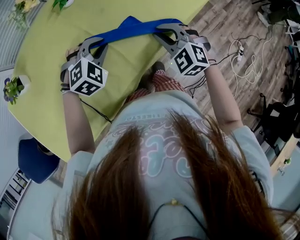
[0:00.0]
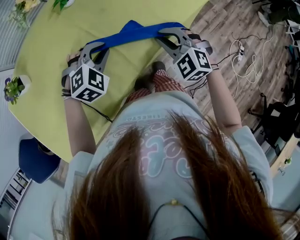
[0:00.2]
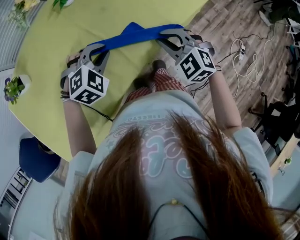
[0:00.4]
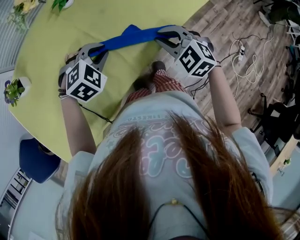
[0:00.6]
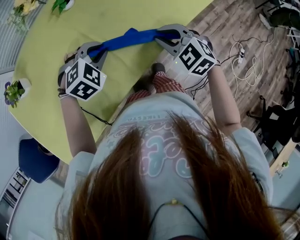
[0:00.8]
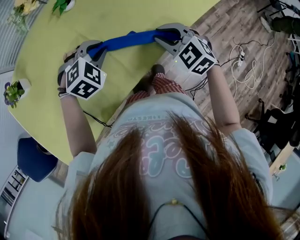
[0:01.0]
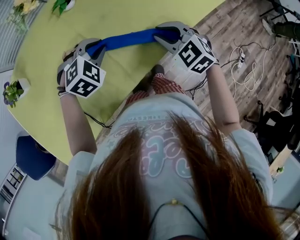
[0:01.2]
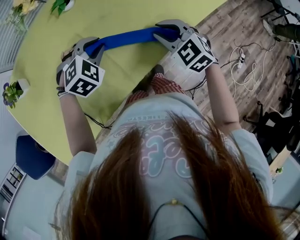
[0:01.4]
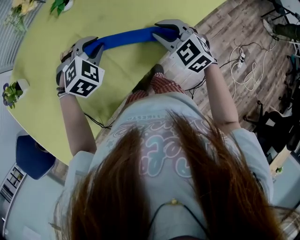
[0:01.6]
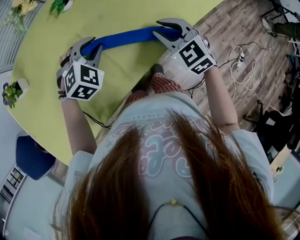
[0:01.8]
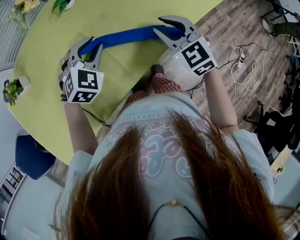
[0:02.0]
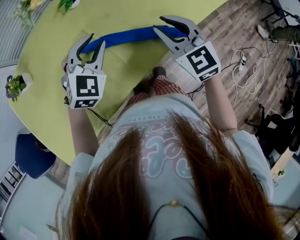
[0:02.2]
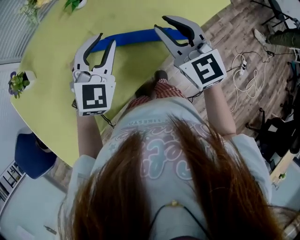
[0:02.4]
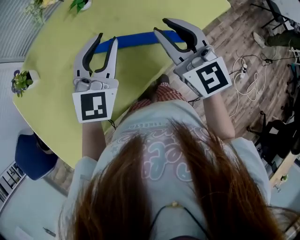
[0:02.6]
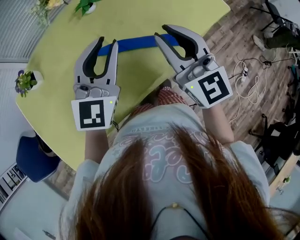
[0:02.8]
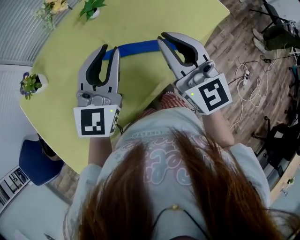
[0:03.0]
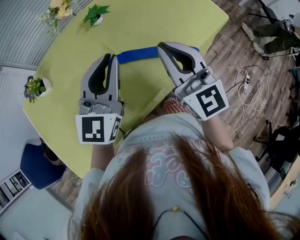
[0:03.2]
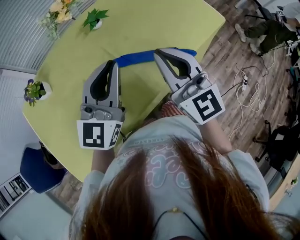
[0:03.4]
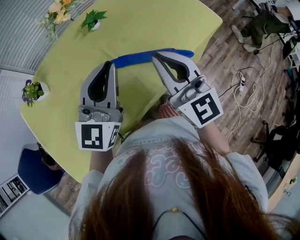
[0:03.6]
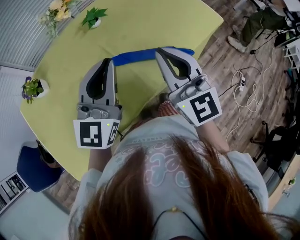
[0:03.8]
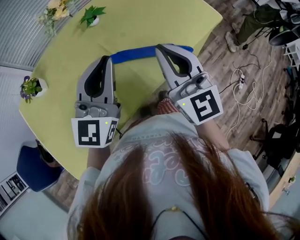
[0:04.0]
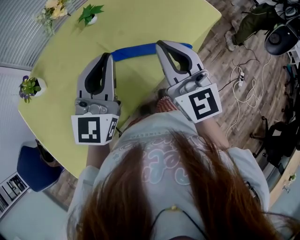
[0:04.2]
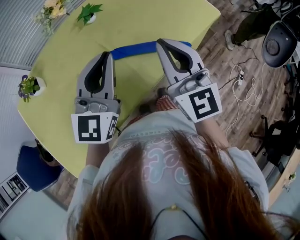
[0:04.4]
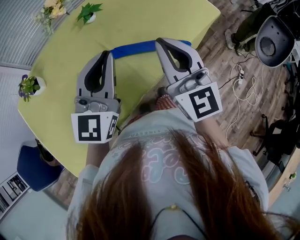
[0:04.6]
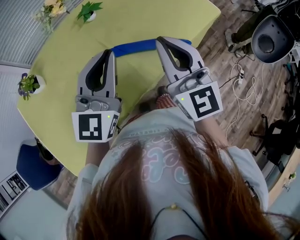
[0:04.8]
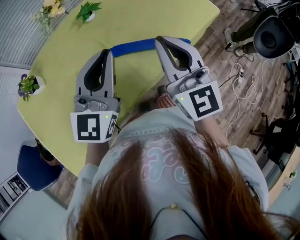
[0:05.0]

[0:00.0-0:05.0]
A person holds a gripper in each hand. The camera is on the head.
0:00.0 to 0:01.6: The right gripper goes some 5 cm forward.
0:01.6 to 0:03.4: The right gripper is displaced upward and to the left by some 25 cm, and angles its fingers upward, by about 40 degrees; the left gripper goes approximately 20 cm upward, and tips its fingers upward by about 60 degrees.
0:03.4 to 0:05.0: The grippers move only a little.

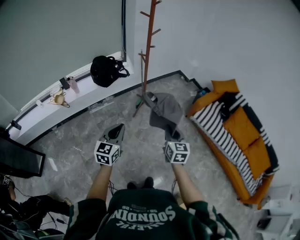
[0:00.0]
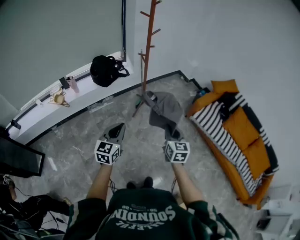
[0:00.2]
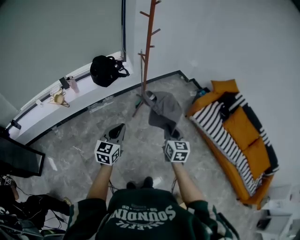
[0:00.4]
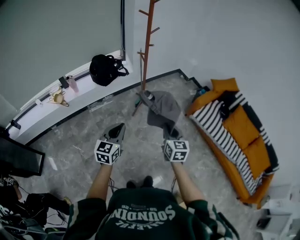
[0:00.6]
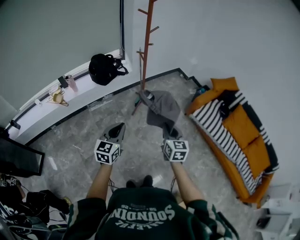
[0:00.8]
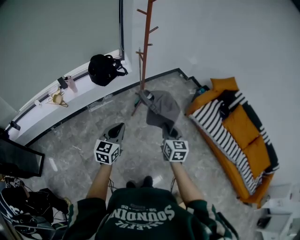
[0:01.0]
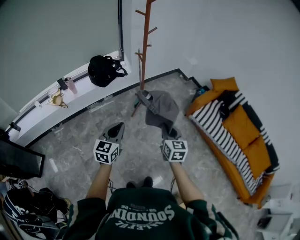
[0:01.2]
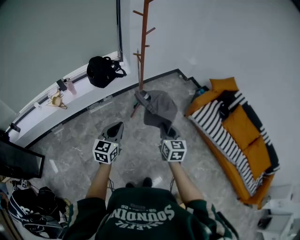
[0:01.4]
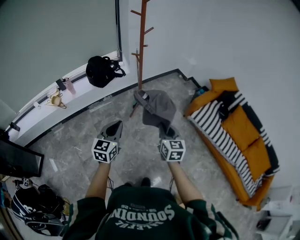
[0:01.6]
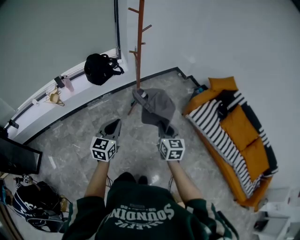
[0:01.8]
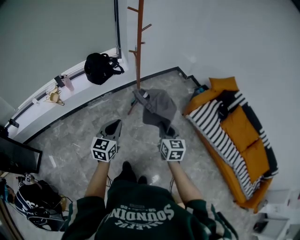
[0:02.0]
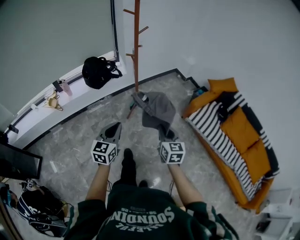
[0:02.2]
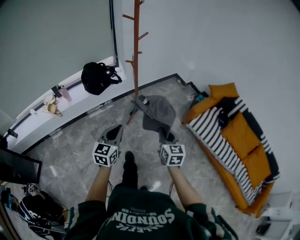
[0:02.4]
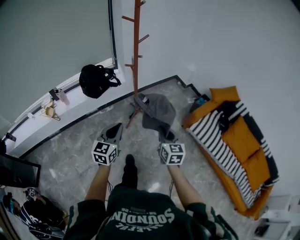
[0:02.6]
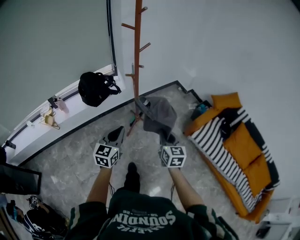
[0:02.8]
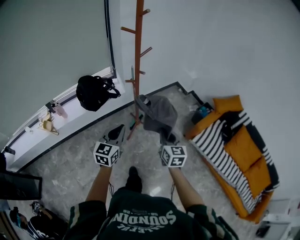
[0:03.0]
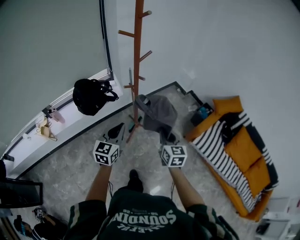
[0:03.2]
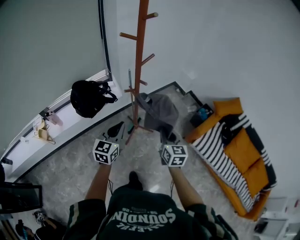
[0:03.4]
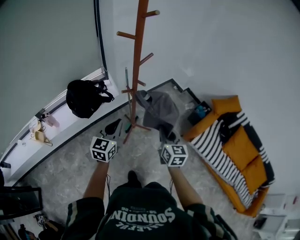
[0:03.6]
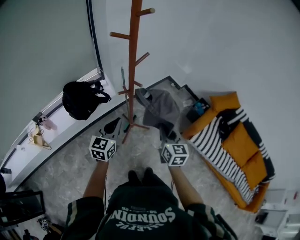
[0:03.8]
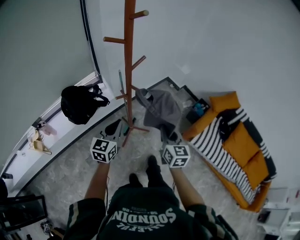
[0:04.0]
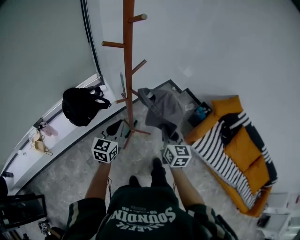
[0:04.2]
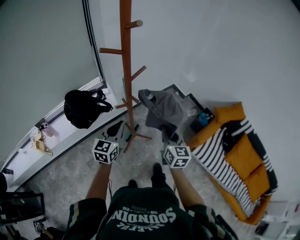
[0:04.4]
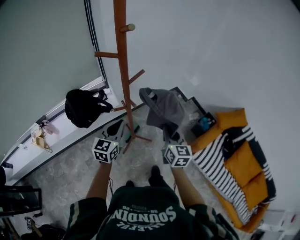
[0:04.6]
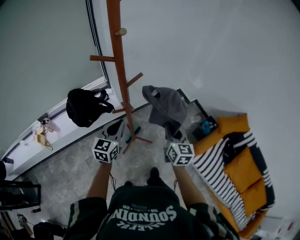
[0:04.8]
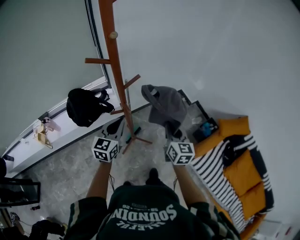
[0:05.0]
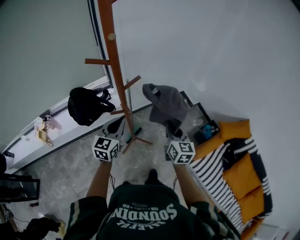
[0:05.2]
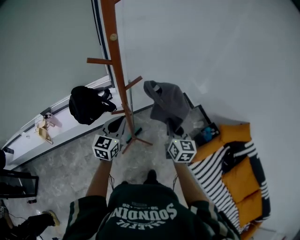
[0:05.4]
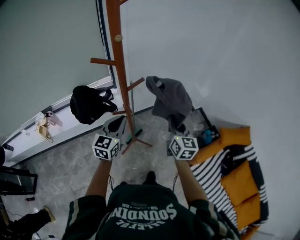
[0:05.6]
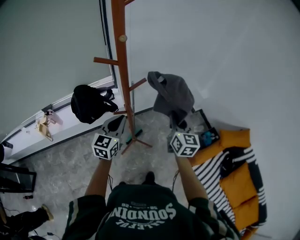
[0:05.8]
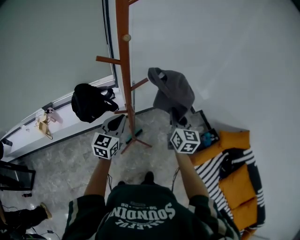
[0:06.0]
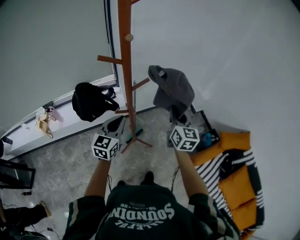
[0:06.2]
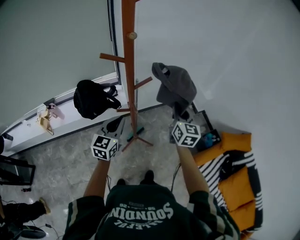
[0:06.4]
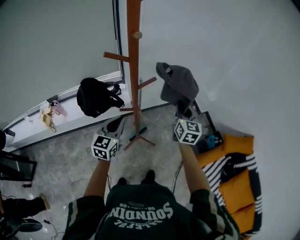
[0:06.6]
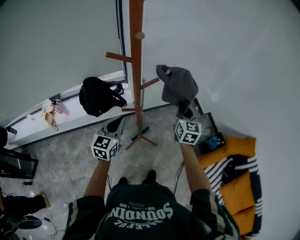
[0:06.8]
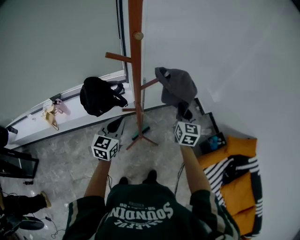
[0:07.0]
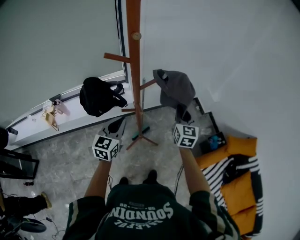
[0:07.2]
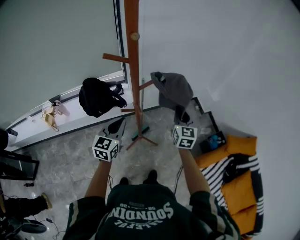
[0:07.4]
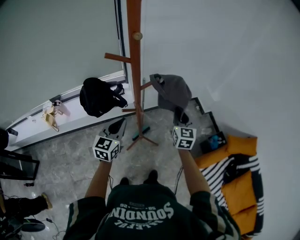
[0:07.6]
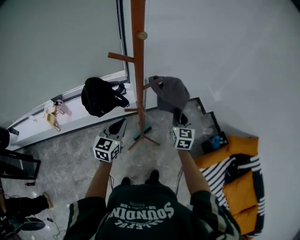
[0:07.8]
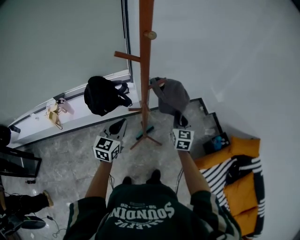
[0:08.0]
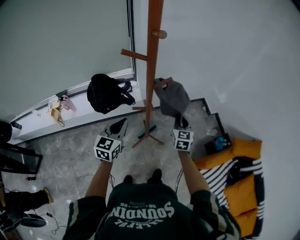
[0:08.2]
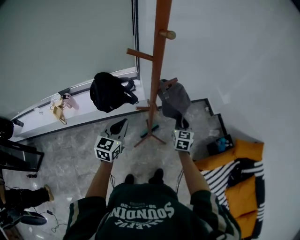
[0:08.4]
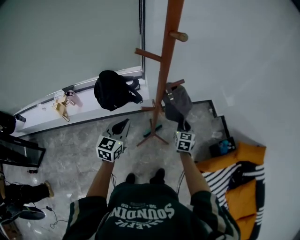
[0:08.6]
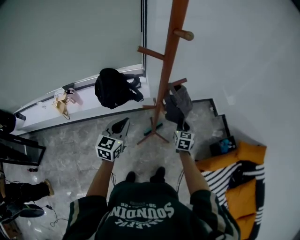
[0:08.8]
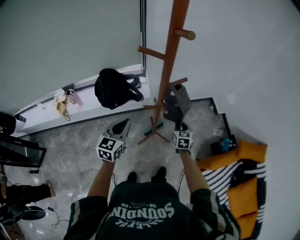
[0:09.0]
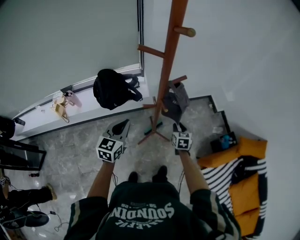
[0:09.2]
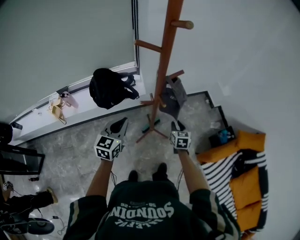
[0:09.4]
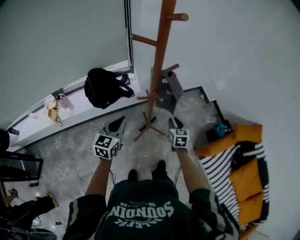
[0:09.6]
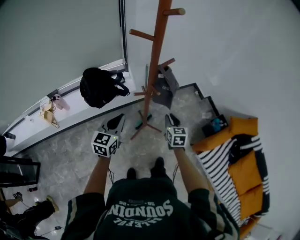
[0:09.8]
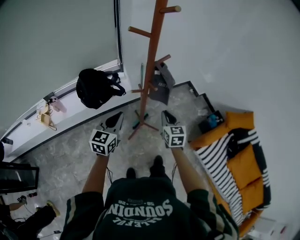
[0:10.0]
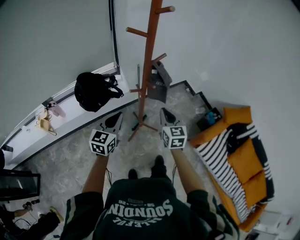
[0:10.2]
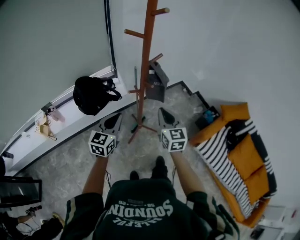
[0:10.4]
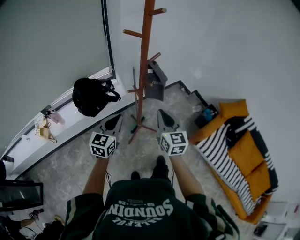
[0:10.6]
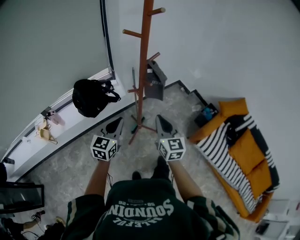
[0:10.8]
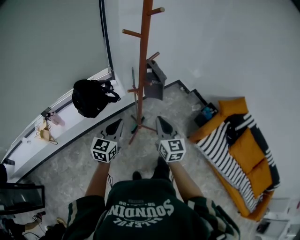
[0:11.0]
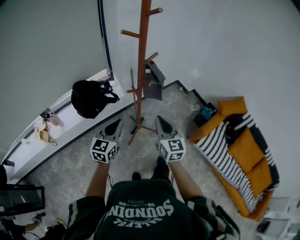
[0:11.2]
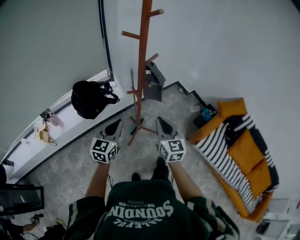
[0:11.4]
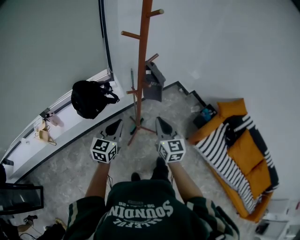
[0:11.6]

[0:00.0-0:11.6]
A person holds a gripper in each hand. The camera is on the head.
0:00.0 to 0:01.4: The grippers make only small movements.
0:01.4 to 0:02.8: Both grippers travel together forward, about 20 cm.
0:02.8 to 0:04.4: The grippers both shift forward by roughly 30 cm.
0:04.4 to 0:05.8: The right gripper heads forward and upward, covering roughly 15 cm. Meanwhile the left gripper shifts roughly 5 cm forward.
0:05.8 to 0:07.2: The right gripper heads forward, covering about 5 cm.
0:07.2 to 0:08.8: The right gripper travels downward by about 15 cm, and turns by about 20 degrees; the left gripper moves to the left, roughly 10 cm.
0:08.8 to 0:10.2: The right gripper travels backward, upward and to the left by about 20 cm. The left gripper moves backward, some 5 cm.
0:10.2 to 0:11.6: The right gripper shifts about 10 cm backward.

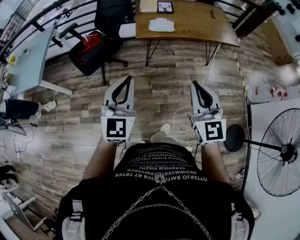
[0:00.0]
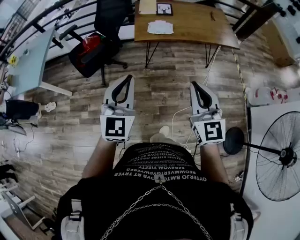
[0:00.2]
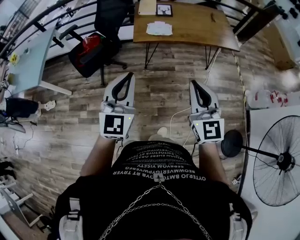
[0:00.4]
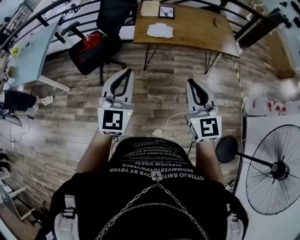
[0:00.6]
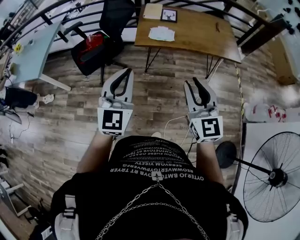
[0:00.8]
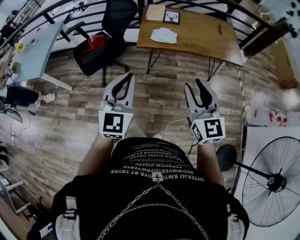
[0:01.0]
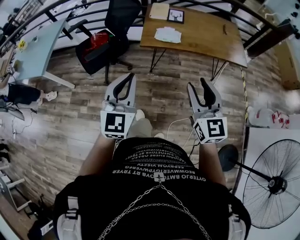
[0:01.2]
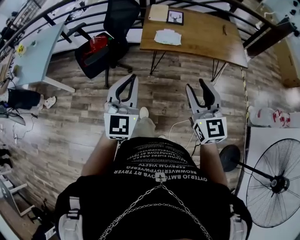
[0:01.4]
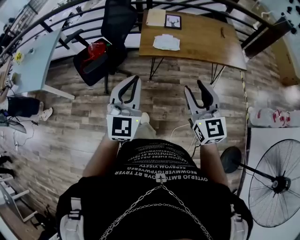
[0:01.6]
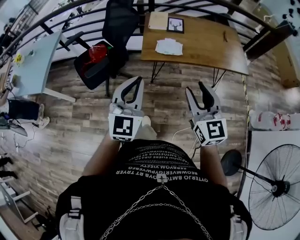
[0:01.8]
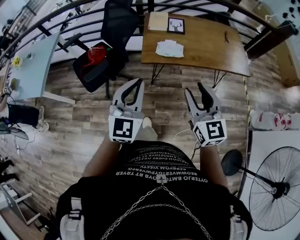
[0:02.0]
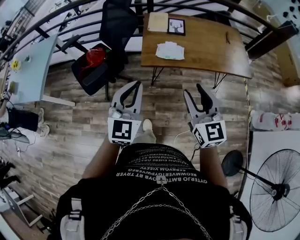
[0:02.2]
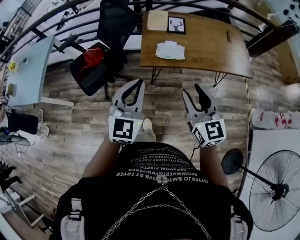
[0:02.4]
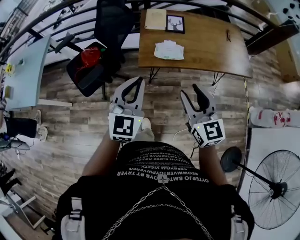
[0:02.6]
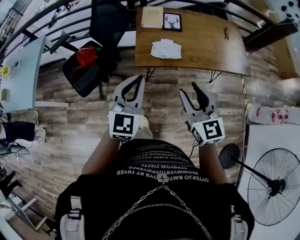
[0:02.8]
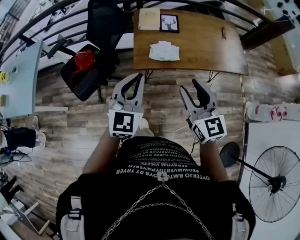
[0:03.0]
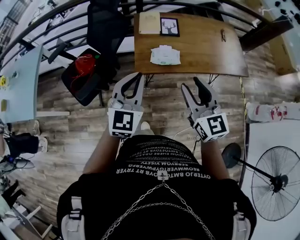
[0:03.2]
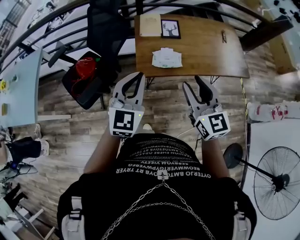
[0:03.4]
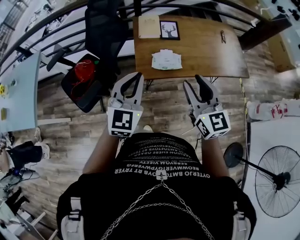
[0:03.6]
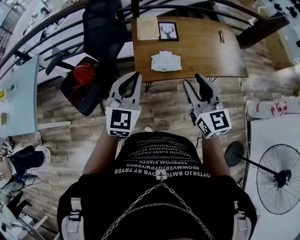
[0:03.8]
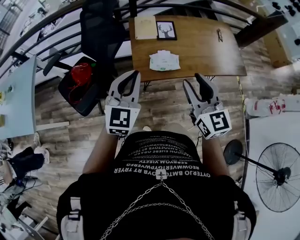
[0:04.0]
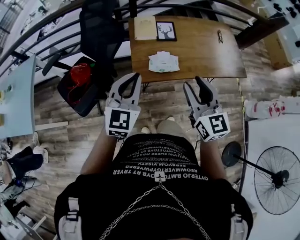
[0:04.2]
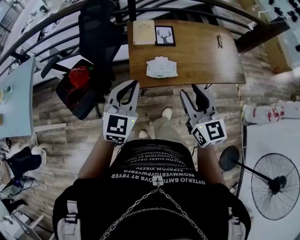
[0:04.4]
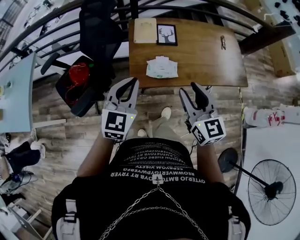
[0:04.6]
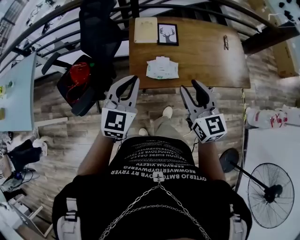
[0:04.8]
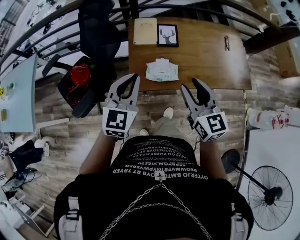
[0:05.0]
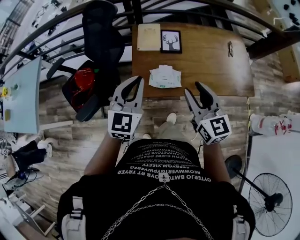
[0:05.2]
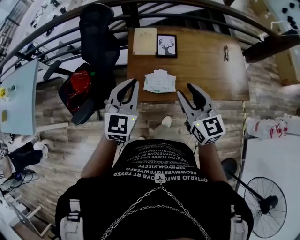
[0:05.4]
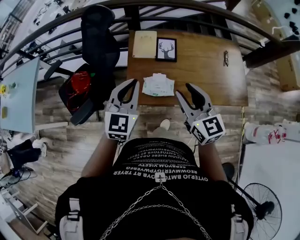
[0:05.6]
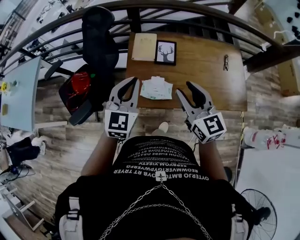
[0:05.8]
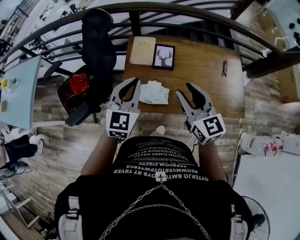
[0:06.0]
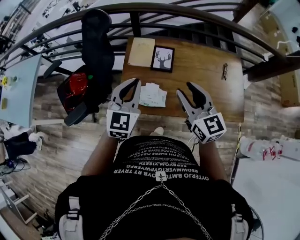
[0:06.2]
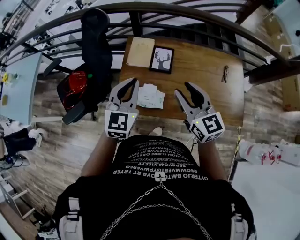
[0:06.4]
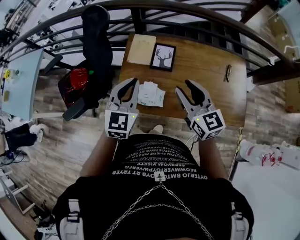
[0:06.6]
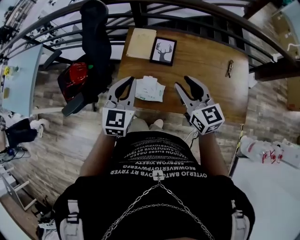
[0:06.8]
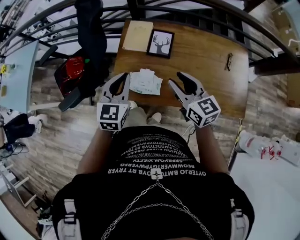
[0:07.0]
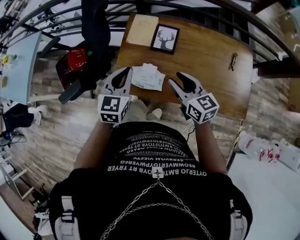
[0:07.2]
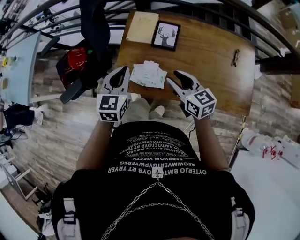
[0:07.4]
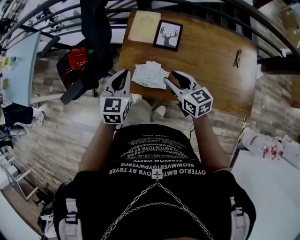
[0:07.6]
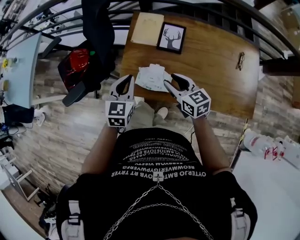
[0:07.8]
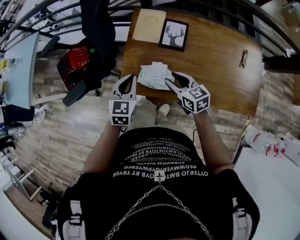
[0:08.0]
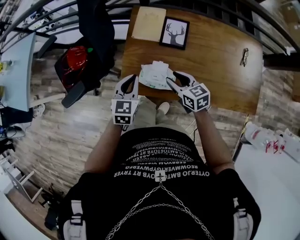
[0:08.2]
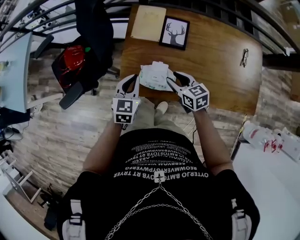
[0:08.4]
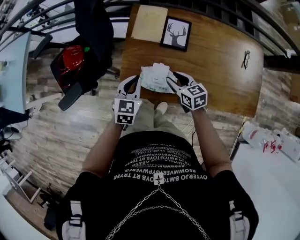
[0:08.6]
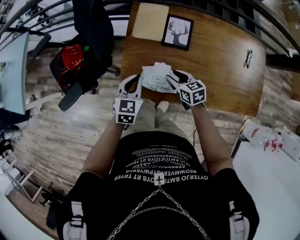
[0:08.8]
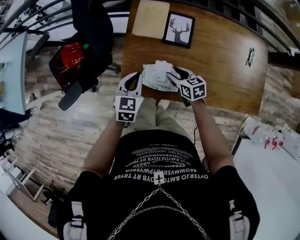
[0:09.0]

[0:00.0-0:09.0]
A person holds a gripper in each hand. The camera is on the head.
0:00.0 to 0:01.6: The right gripper shifts some 15 cm forward, and opens up; the left gripper heads forward and to the right, covering roughly 15 cm.
0:01.6 to 0:03.0: The two grippers go approximately 20 cm forward.
0:03.0 to 0:04.4: Both grippers travel together forward, roughly 10 cm.
0:04.4 to 0:06.0: Both grippers travel together forward and to the right, some 20 cm.
0:06.0 to 0:07.6: The two grippers go some 15 cm downward. The left gripper changes its angle by roughly 20 degrees; the right gripper rotates about 30 degrees.
0:07.6 to 0:09.0: Both grippers move downward, roughly 15 cm. The right gripper changes its angle by some 20 degrees.
